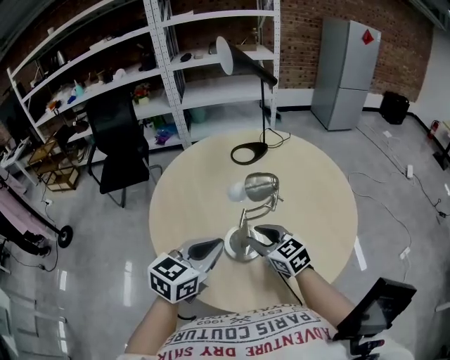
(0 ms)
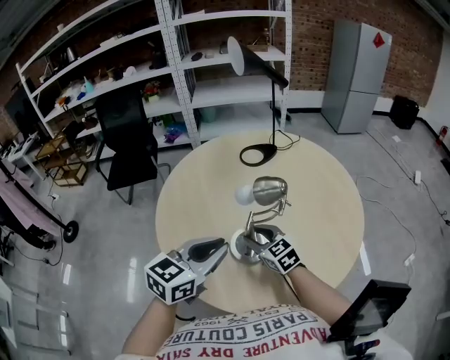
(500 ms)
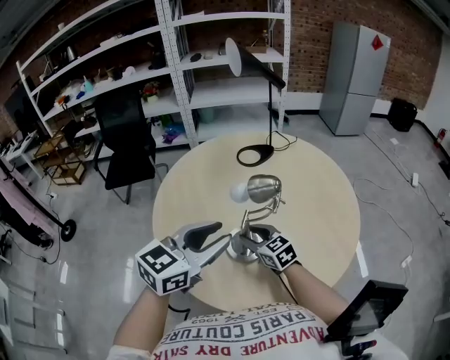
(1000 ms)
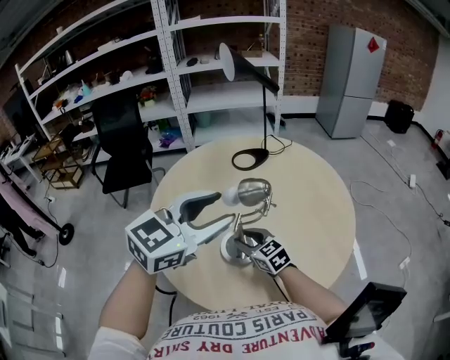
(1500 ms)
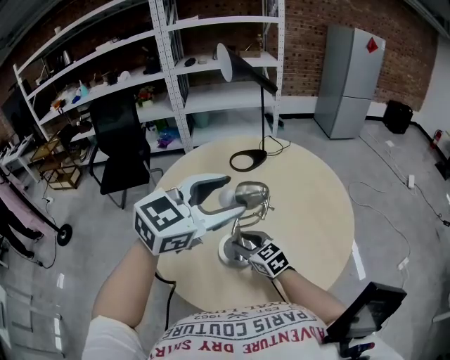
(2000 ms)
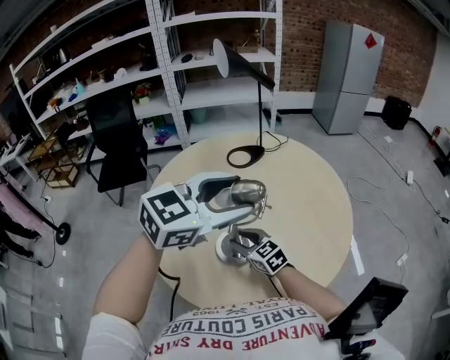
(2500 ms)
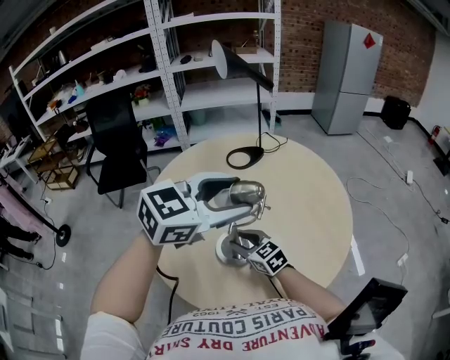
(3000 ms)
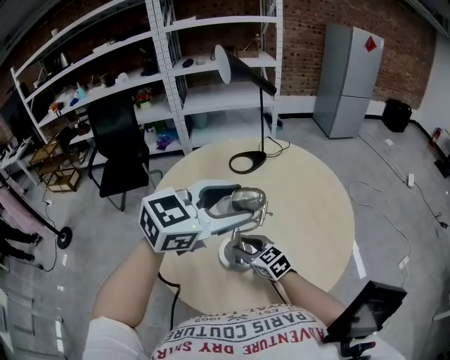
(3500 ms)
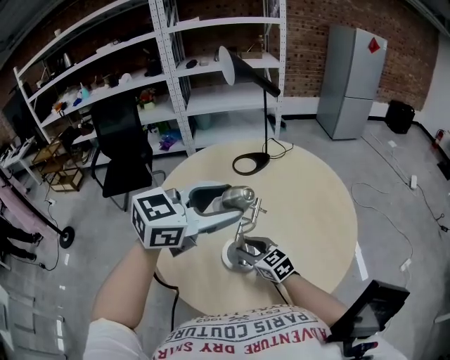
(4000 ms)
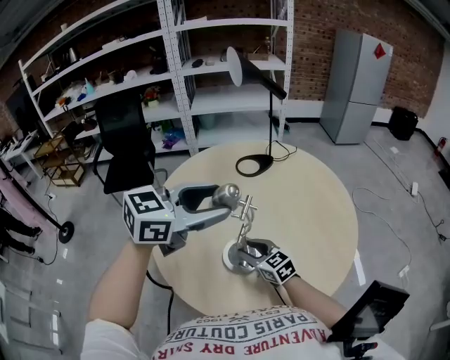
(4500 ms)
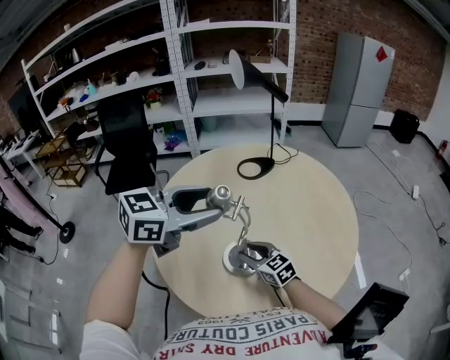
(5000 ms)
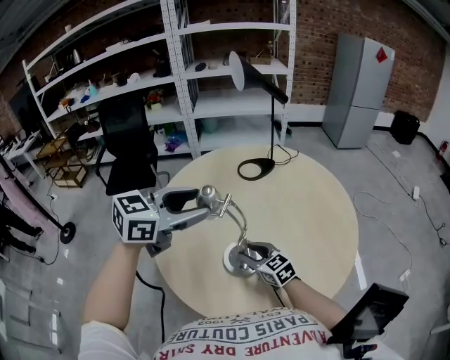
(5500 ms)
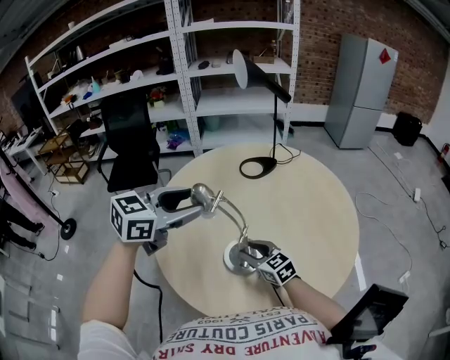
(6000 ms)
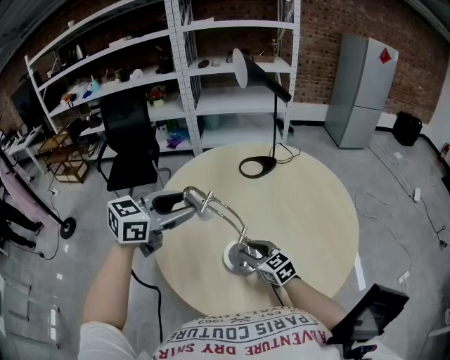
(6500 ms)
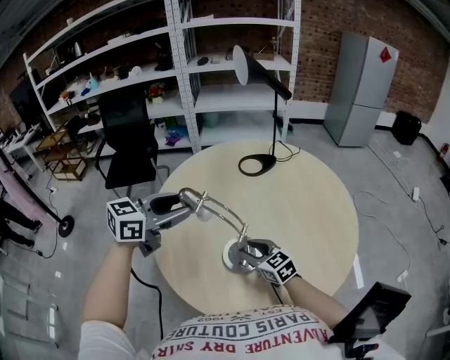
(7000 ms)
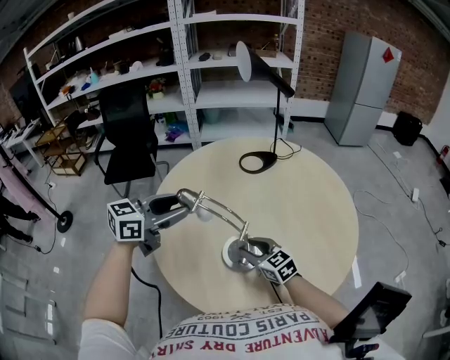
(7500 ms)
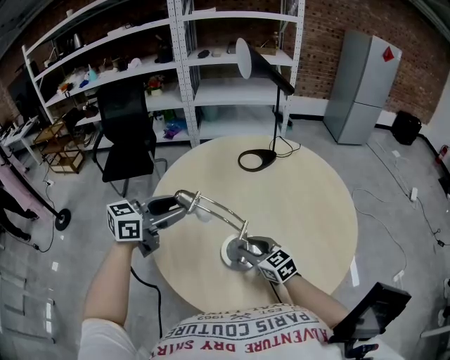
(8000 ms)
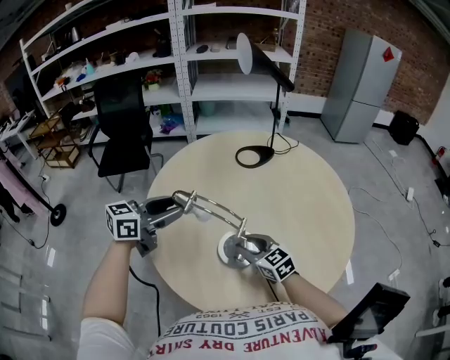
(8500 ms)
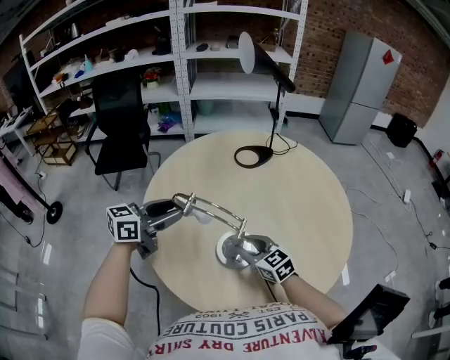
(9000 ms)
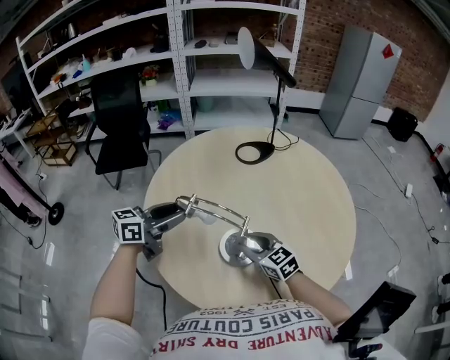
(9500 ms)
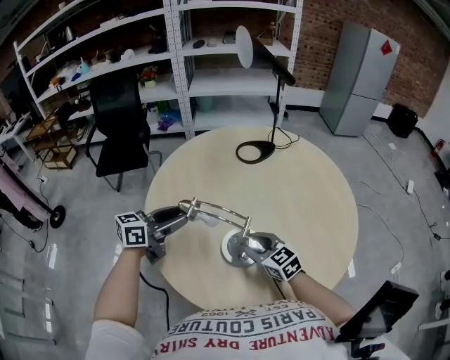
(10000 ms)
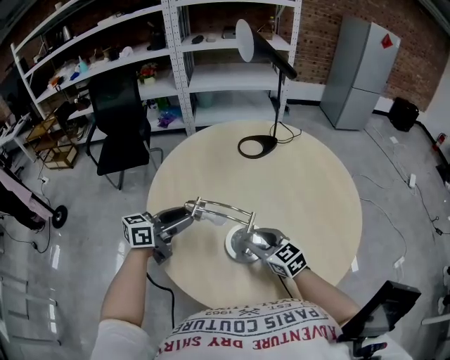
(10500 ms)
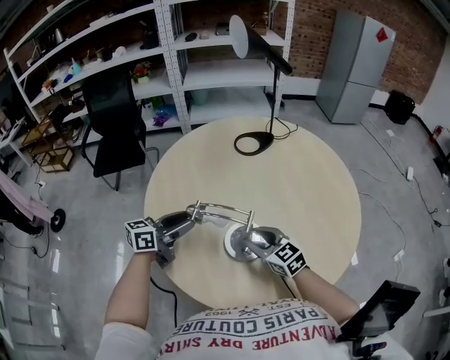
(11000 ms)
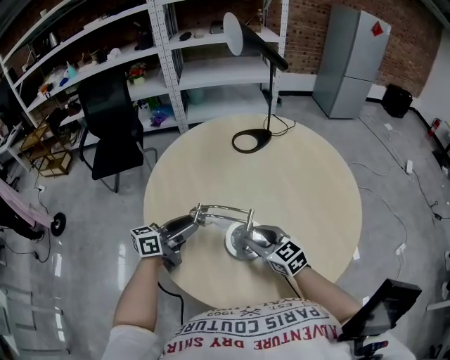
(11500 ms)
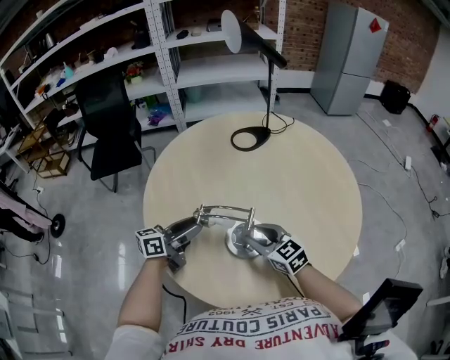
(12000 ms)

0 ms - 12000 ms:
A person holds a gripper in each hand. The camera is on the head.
0 ms - 2000 ms: The right gripper goes roughly 5 cm downward. Meanwhile the left gripper heads upward, to the right and forward, covering some 15 cm, turns by about 30 degrees, and opens its fingers.
2000 ms - 4000 ms: The grippers make only small movements.
4000 ms - 6000 ms: The left gripper moves to the left, about 10 cm.
6000 ms - 8000 ms: The left gripper is displaced downward and to the left by roughly 10 cm.
8000 ms - 10000 ms: The left gripper shifts roughly 5 cm downward.
10000 ms - 12000 ms: The left gripper heads downward, covering some 10 cm.

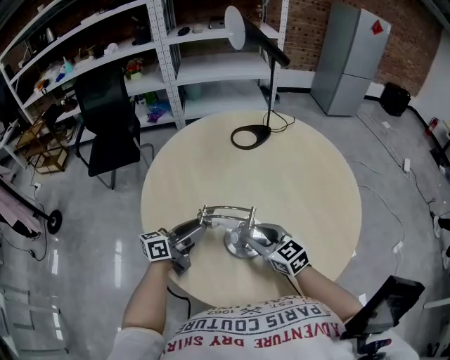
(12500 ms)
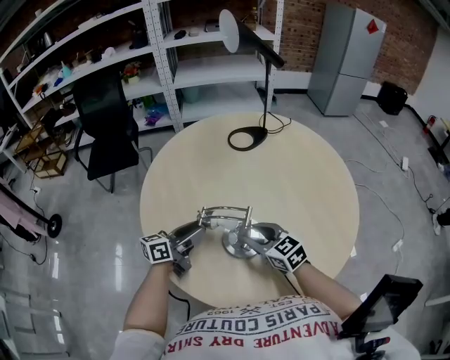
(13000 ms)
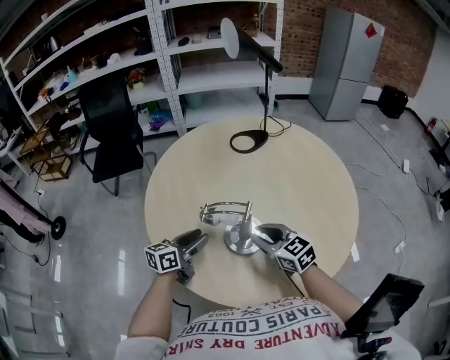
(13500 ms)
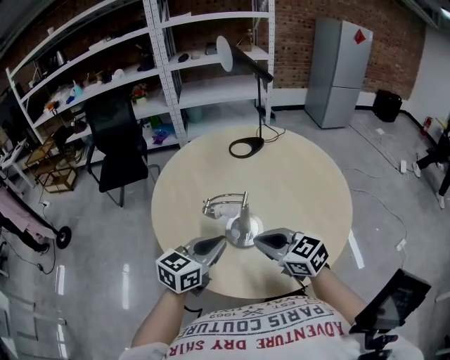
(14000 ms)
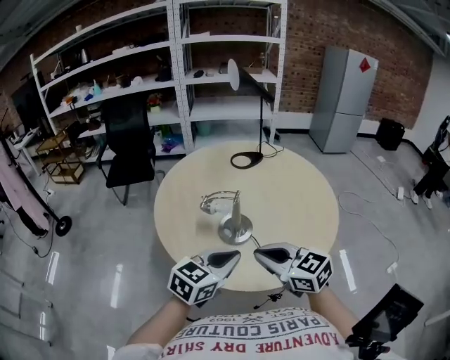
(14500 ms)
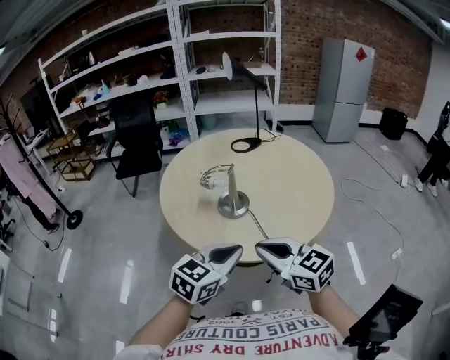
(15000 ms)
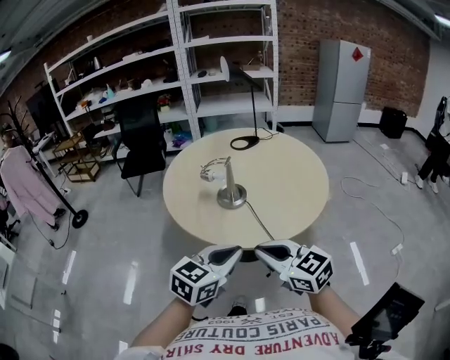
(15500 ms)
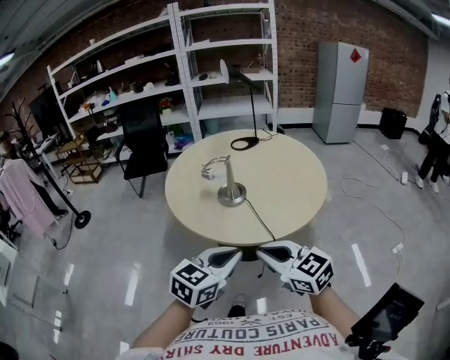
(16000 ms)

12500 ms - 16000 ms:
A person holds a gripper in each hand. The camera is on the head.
12500 ms - 14500 ms: The left gripper goes about 30 cm backward, upward and to the right, rotates approximately 40 degrees, and closes up, while the right gripper moves backward and upward, roughly 25 cm, and closes up.
14500 ms - 16000 ms: The grippers both shift backward by some 20 cm.

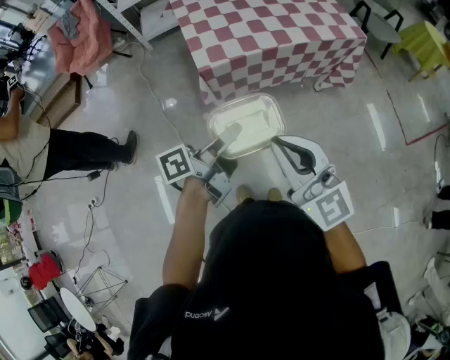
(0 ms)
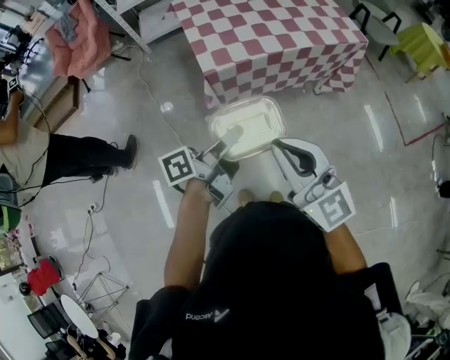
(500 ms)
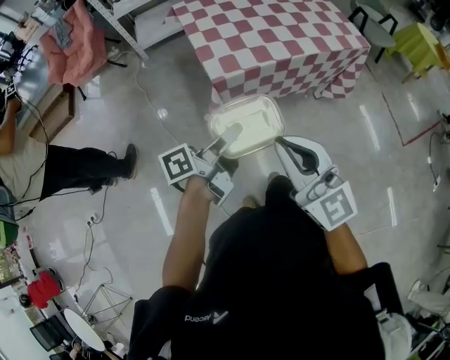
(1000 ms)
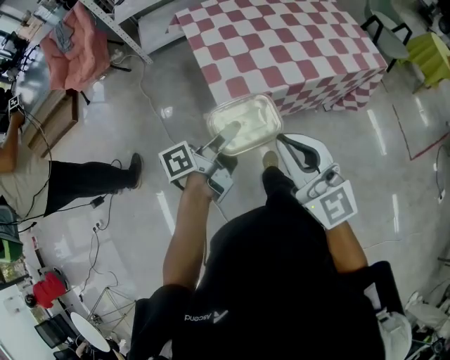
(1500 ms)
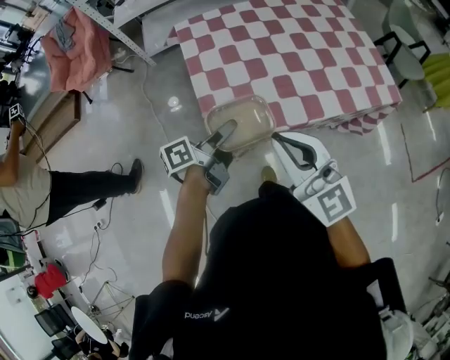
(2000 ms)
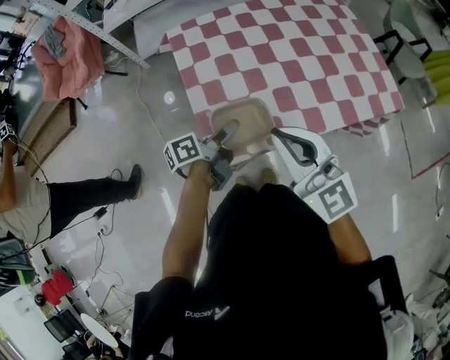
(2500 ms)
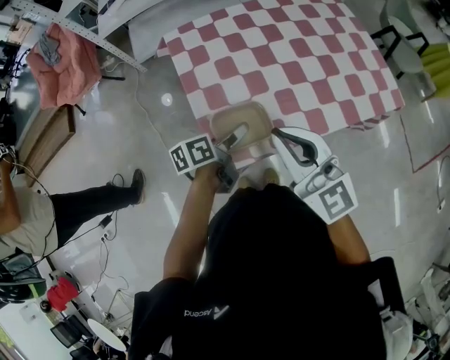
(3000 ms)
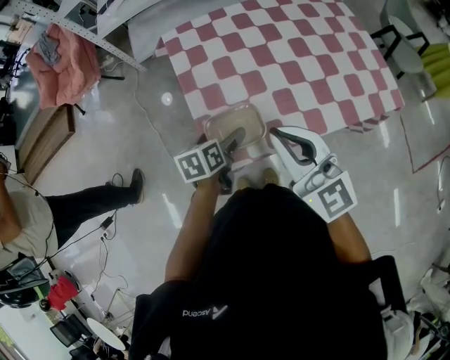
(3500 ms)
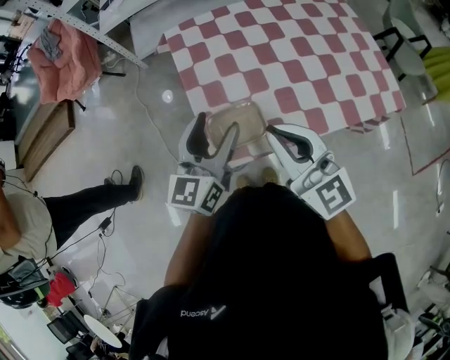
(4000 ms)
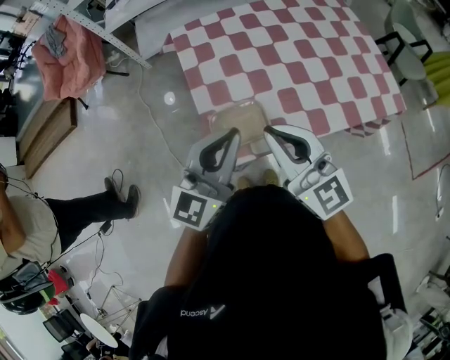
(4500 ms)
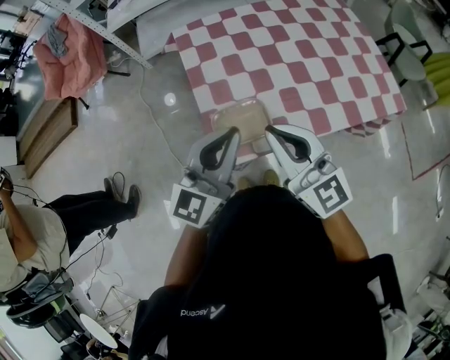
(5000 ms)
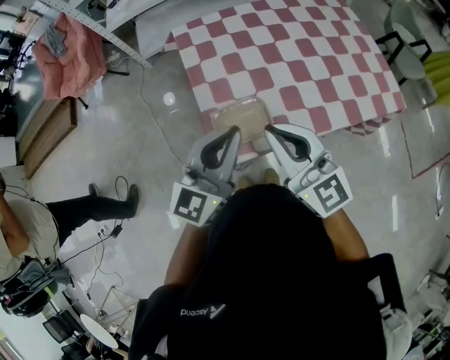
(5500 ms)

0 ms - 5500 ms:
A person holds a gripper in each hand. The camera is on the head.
0 ms - 2000 ms: Both grippers travel together forward, about 35 cm.
2000 ms - 3500 ms: The left gripper is displaced forward and downward by about 10 cm, angles its fingers downward, by about 30 degrees, and opens. Meanwhile the right gripper is displaced forward by about 10 cm.
3500 ms - 5500 ms: The left gripper is displaced upward by approximately 20 cm, tips its fingers upward by some 50 degrees, and closes.

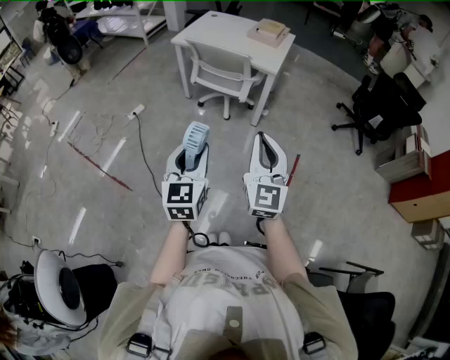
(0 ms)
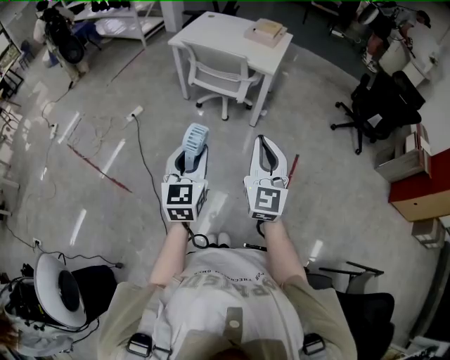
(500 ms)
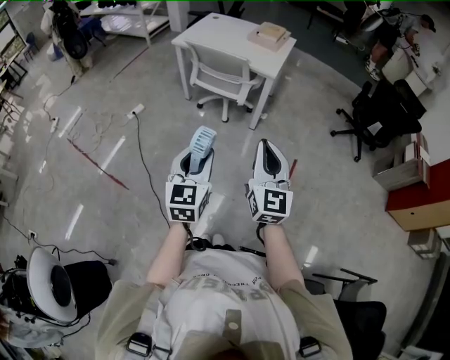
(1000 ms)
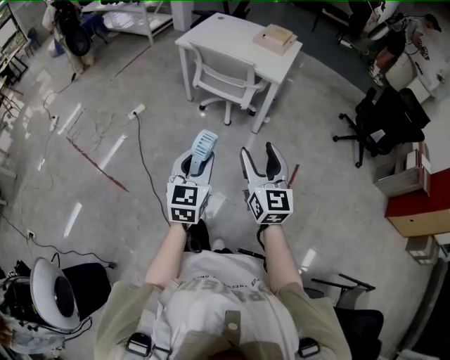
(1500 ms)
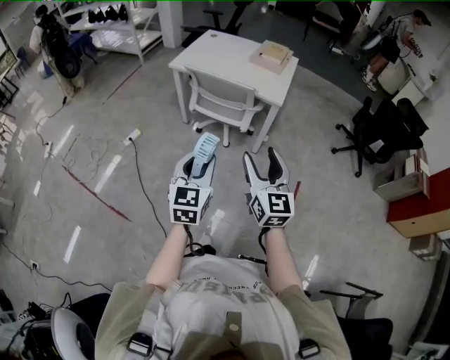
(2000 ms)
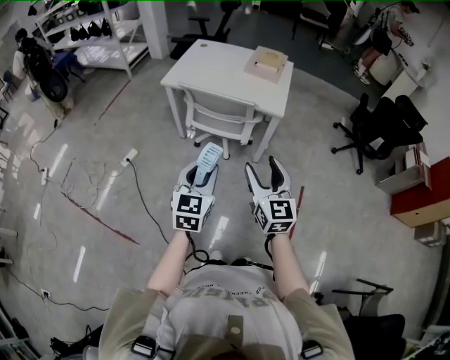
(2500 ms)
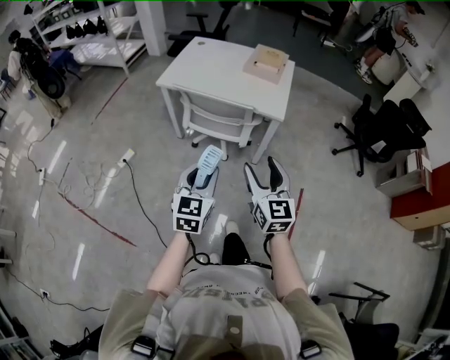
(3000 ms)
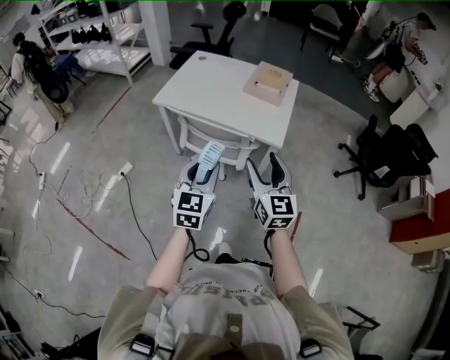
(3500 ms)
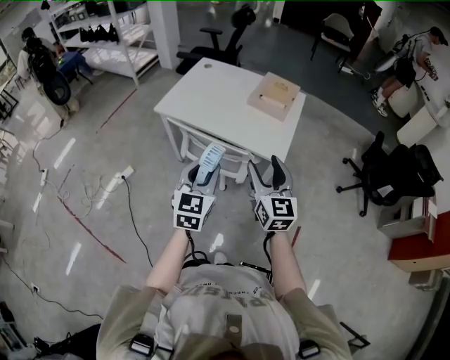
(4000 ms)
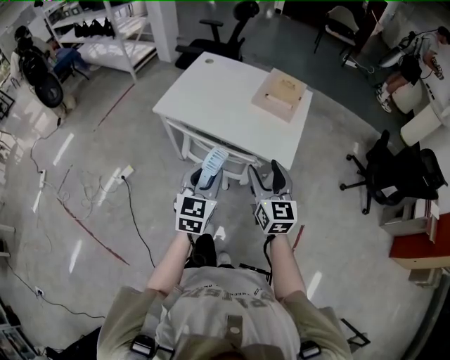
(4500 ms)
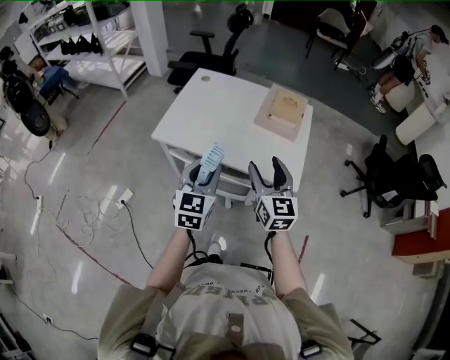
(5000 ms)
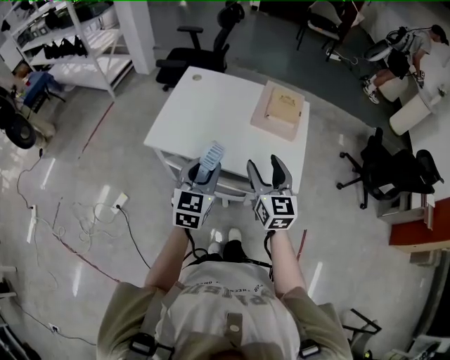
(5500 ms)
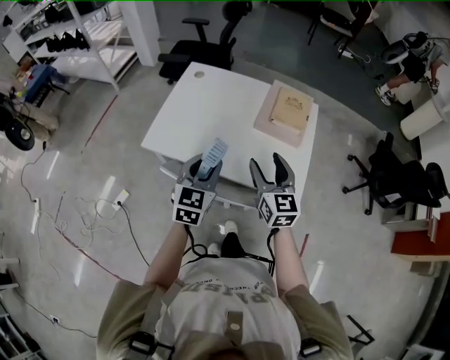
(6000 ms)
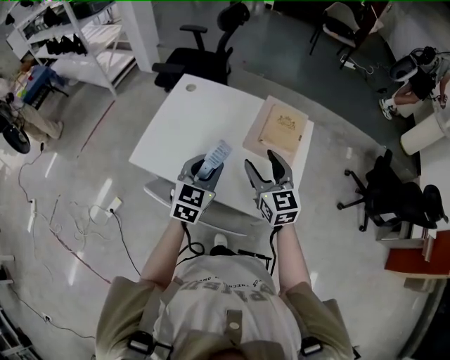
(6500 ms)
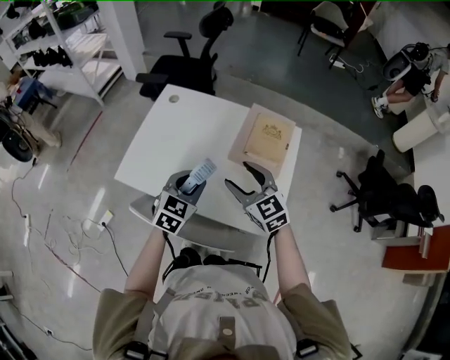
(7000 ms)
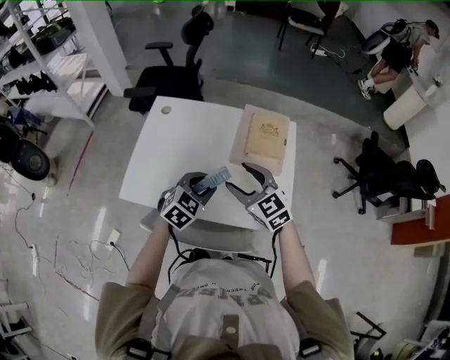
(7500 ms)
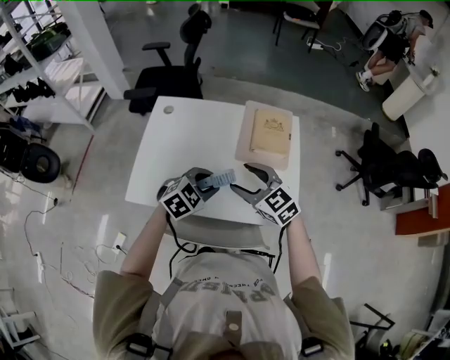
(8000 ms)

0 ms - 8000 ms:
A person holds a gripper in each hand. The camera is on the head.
0 ms - 2000 ms: Both grippers travel together forward, roughly 15 cm. The right gripper opens its fingers.
2000 ms - 4000 ms: The two grippers go some 35 cm forward.
4000 ms - 6000 ms: Both grippers move forward, some 30 cm.
6000 ms - 8000 ms: The right gripper heads forward, covering approximately 10 cm, and rotates some 30 degrees. The left gripper moves forward, downward and to the right, approximately 15 cm, and changes its angle by roughly 50 degrees.
